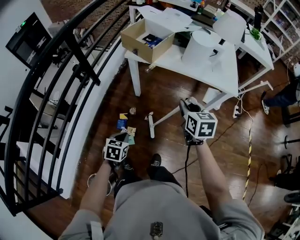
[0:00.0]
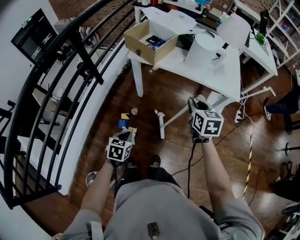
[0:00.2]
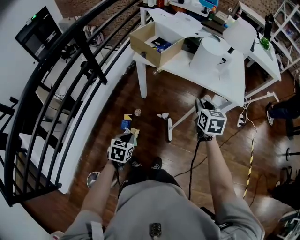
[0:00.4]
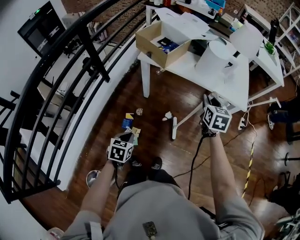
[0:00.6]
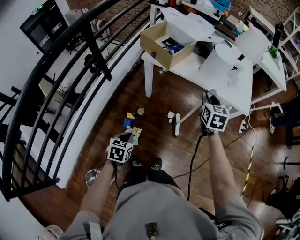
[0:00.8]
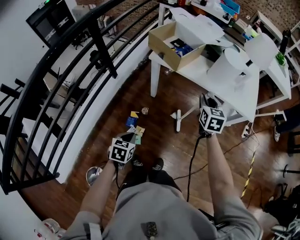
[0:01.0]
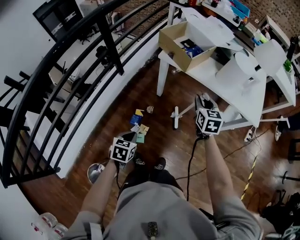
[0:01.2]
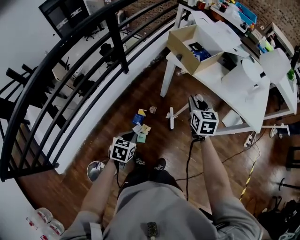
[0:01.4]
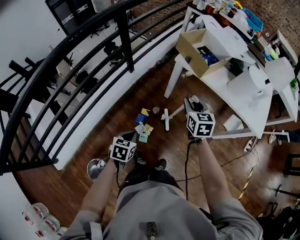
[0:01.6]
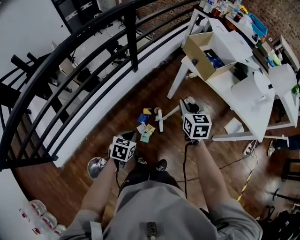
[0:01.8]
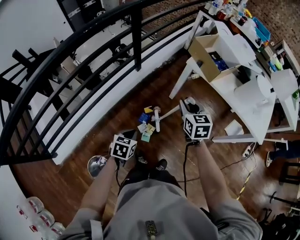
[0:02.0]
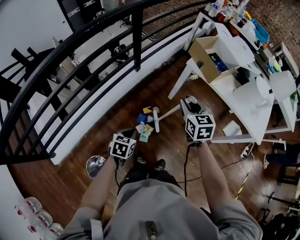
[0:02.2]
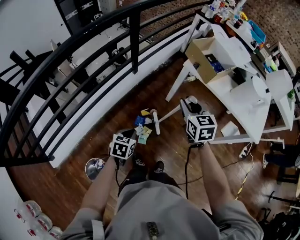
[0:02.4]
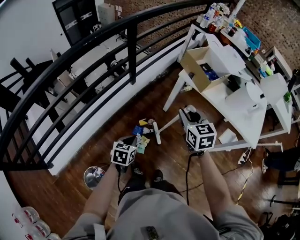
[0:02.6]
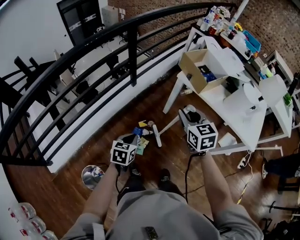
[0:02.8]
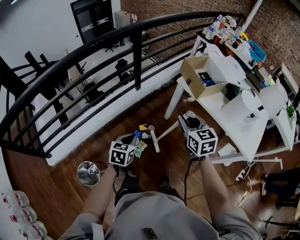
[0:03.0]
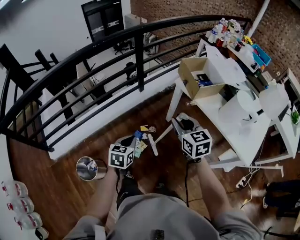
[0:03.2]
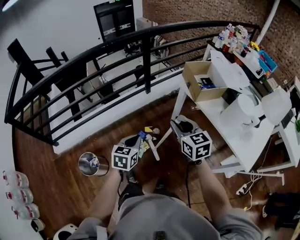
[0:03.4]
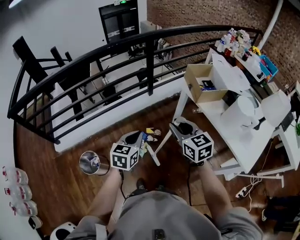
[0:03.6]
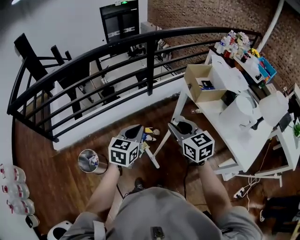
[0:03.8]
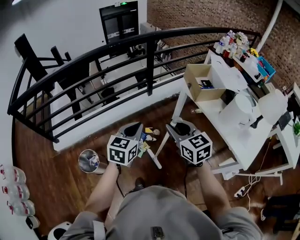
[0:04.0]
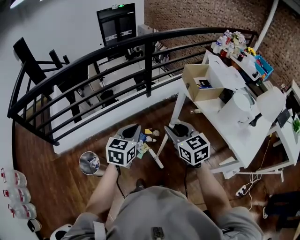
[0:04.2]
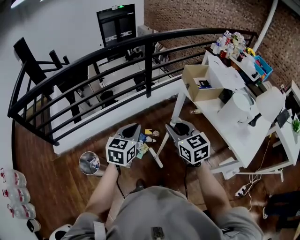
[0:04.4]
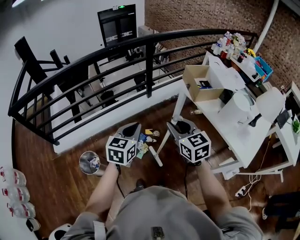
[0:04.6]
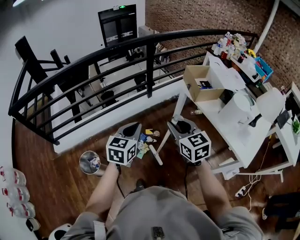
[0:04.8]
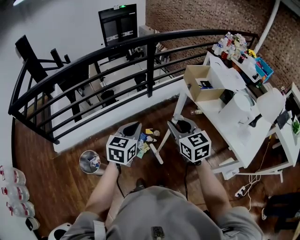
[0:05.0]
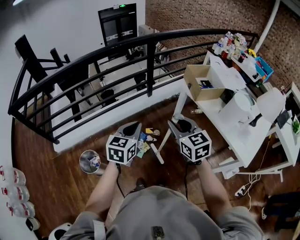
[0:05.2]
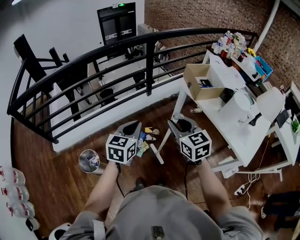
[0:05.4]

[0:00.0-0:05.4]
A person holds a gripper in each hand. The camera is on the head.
0:00.0 to 0:01.4: The right gripper heads to the left and forward, covering about 15 cm. Meanwhile the left gripper moves to the left, approximately 10 cm.
0:01.4 to 0:02.8: The right gripper heads to the left and upward, covering approximately 15 cm, and rotates approximately 20 degrees. The left gripper is displaced upward by roughly 5 cm.
0:02.8 to 0:04.0: The right gripper moves some 15 cm, and changes its angle by about 30 degrees. Meanwhile the left gripper shifts roughly 20 cm upward, and turns by approximately 30 degrees.
0:04.0 to 0:05.4: There are only small adjustments of the grippers.

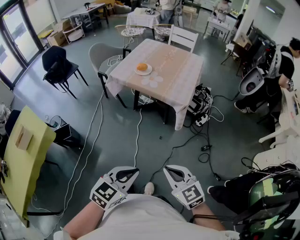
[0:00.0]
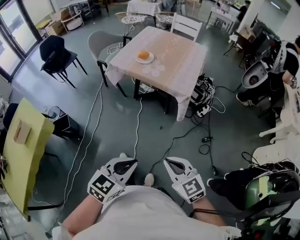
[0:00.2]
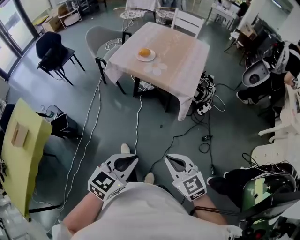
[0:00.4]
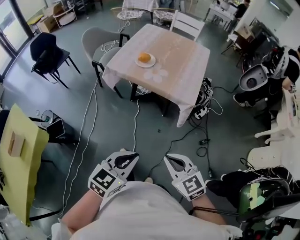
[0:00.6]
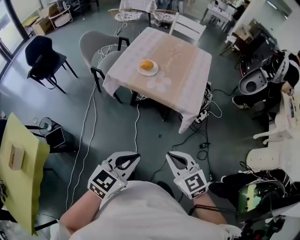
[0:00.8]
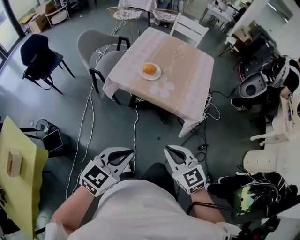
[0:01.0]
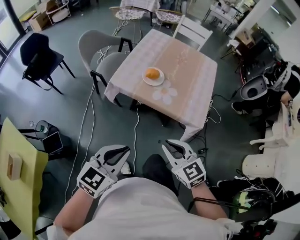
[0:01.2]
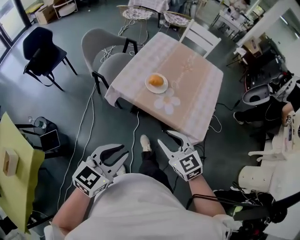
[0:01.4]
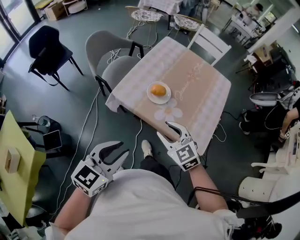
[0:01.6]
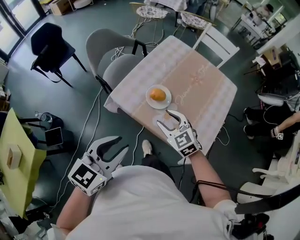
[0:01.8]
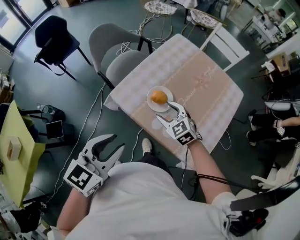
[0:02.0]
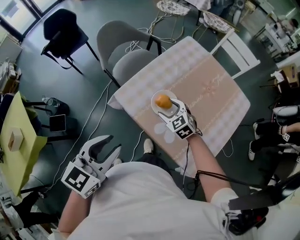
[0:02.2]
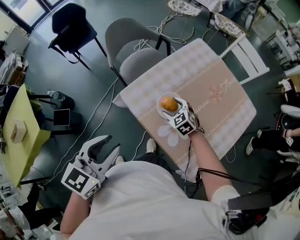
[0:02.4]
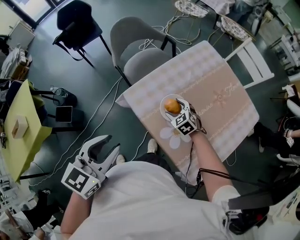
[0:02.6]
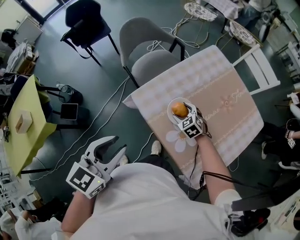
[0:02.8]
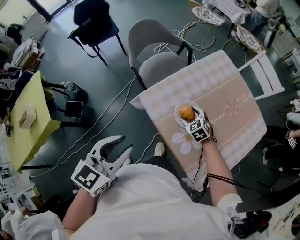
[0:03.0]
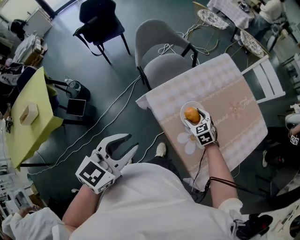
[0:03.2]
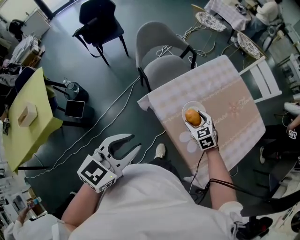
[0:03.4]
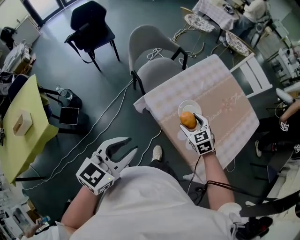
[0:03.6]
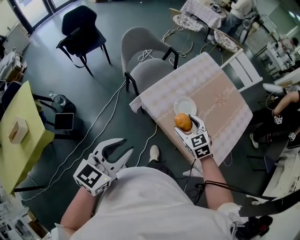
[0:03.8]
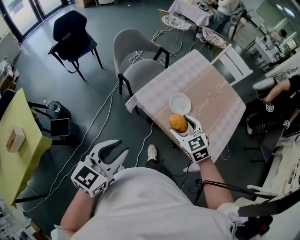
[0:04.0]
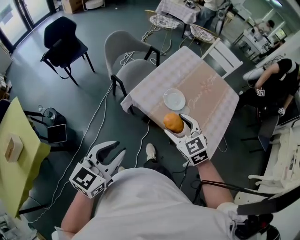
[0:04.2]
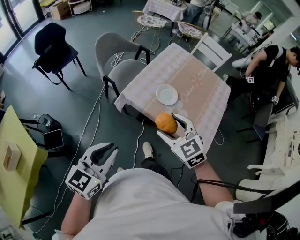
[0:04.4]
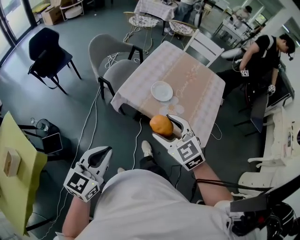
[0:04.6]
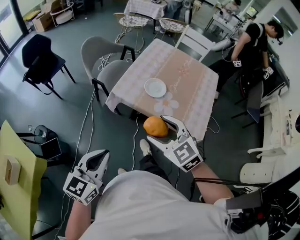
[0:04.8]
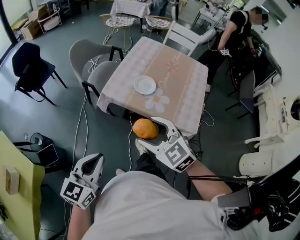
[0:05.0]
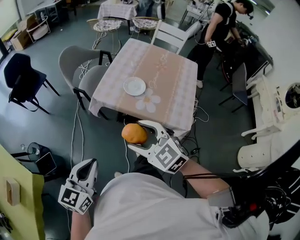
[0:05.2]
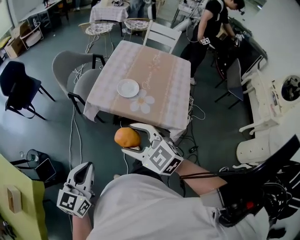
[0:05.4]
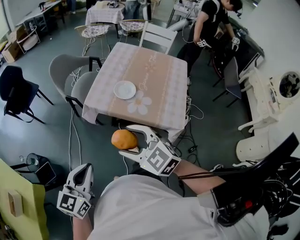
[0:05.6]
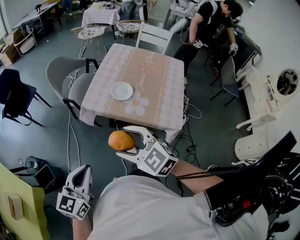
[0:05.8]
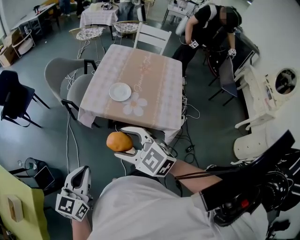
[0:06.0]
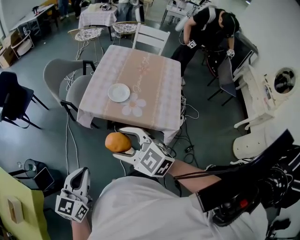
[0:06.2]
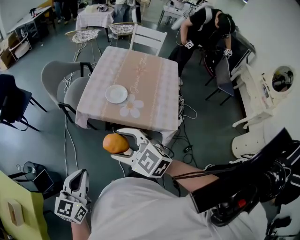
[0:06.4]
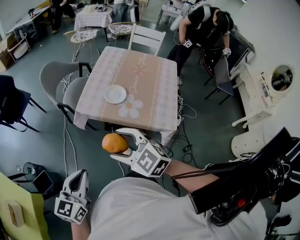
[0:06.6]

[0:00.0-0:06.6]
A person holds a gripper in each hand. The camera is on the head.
0:00.0 to 0:01.6: The pair of grippers is taken forward, about 50 cm. The left gripper opens up; the right gripper opens its fingers.
0:01.6 to 0:03.2: The left gripper moves forward, some 10 cm, and turns by approximately 30 degrees, while the right gripper shifts approximately 30 cm forward and downward, rotates approximately 20 degrees, and opens up.
0:03.2 to 0:05.0: The right gripper shifts approximately 40 cm backward and upward, and rotates some 20 degrees. Meanwhile the left gripper heads backward and to the left, covering roughly 20 cm, swivels some 20 degrees, and closes its fingers.
0:05.0 to 0:06.6: The grippers stay close to where they were, moving slightly.

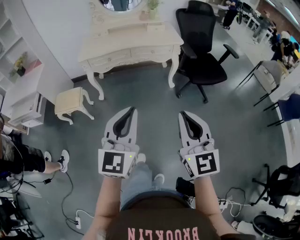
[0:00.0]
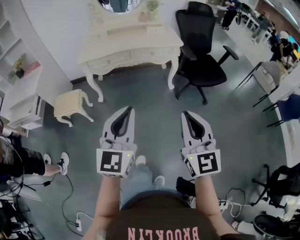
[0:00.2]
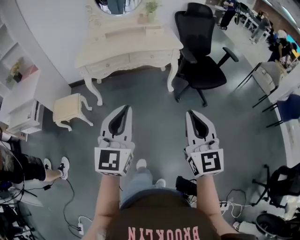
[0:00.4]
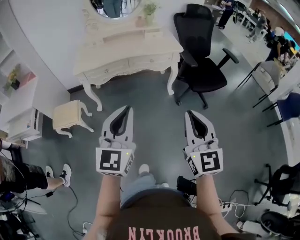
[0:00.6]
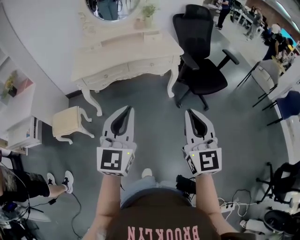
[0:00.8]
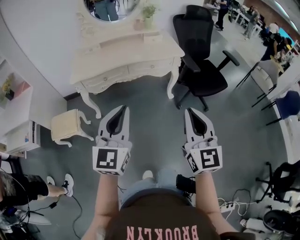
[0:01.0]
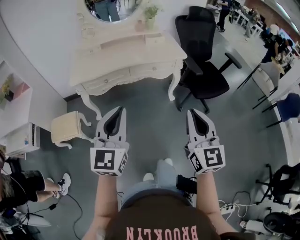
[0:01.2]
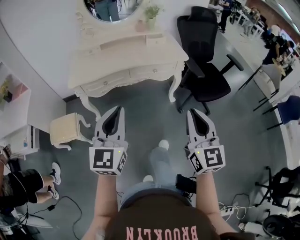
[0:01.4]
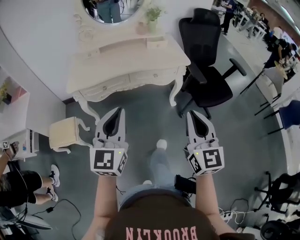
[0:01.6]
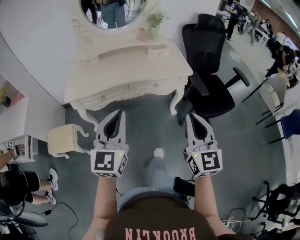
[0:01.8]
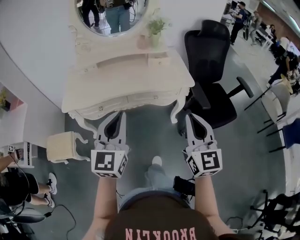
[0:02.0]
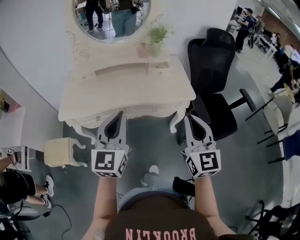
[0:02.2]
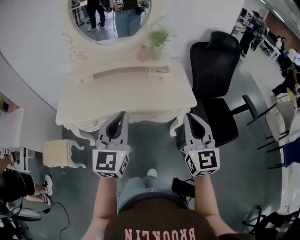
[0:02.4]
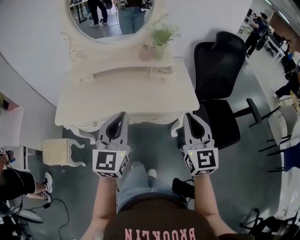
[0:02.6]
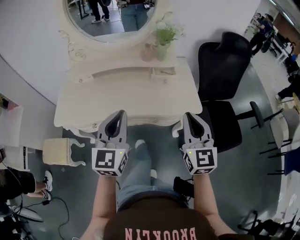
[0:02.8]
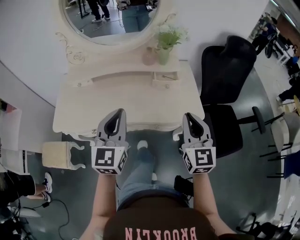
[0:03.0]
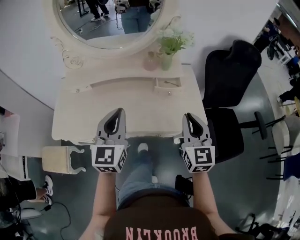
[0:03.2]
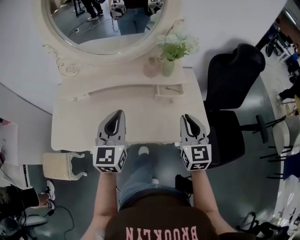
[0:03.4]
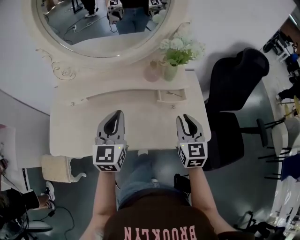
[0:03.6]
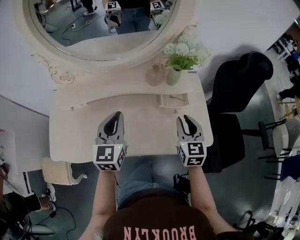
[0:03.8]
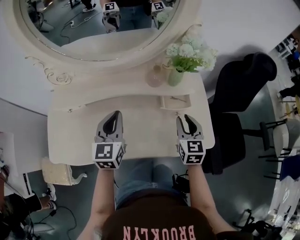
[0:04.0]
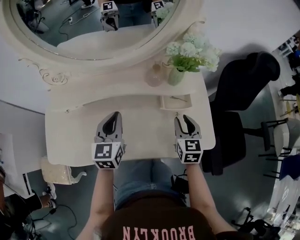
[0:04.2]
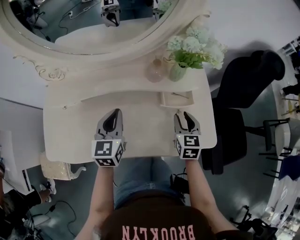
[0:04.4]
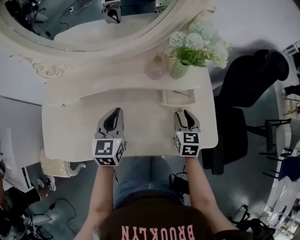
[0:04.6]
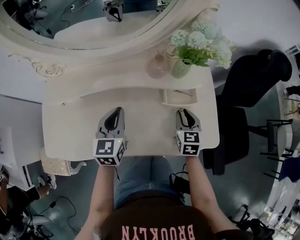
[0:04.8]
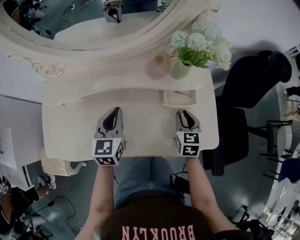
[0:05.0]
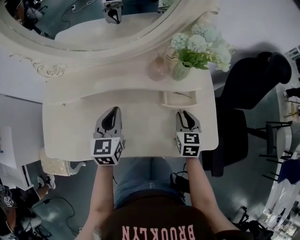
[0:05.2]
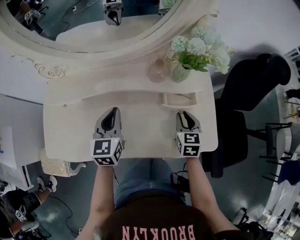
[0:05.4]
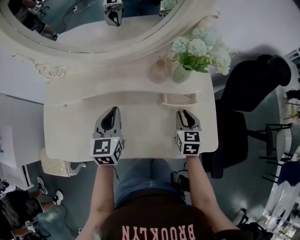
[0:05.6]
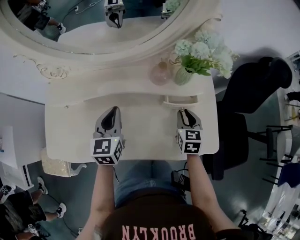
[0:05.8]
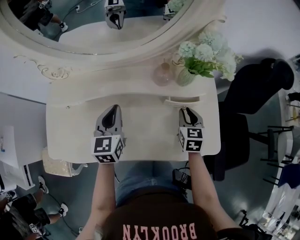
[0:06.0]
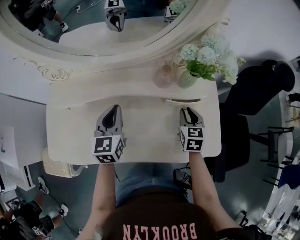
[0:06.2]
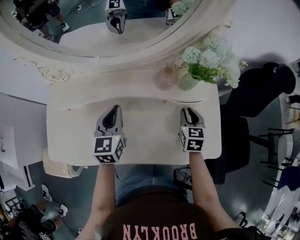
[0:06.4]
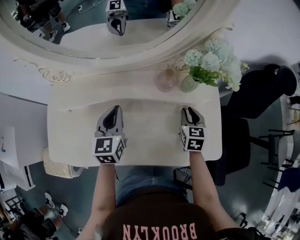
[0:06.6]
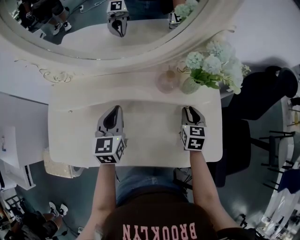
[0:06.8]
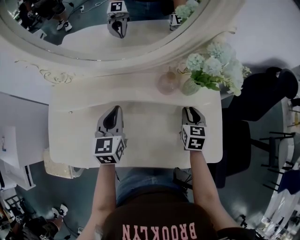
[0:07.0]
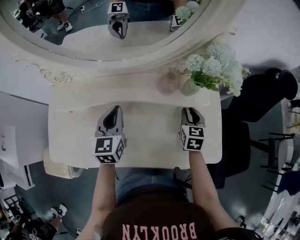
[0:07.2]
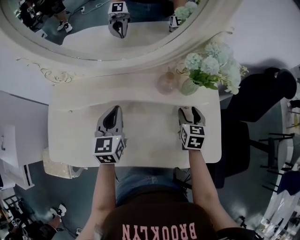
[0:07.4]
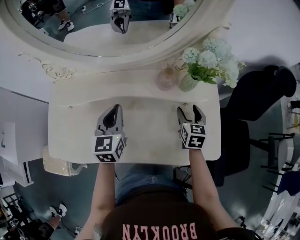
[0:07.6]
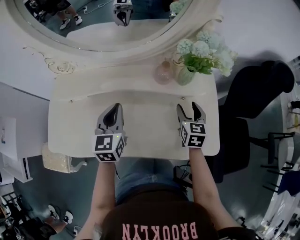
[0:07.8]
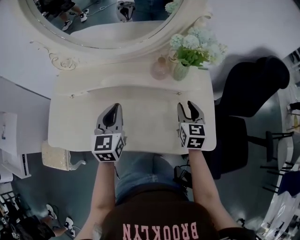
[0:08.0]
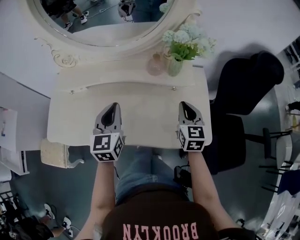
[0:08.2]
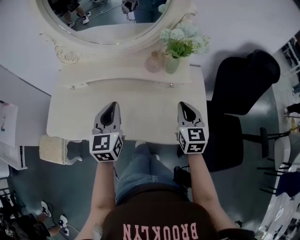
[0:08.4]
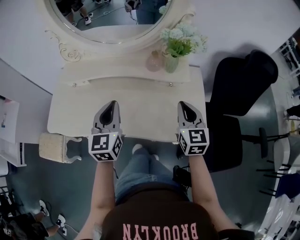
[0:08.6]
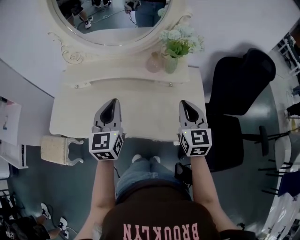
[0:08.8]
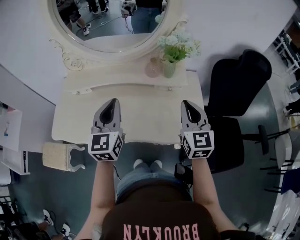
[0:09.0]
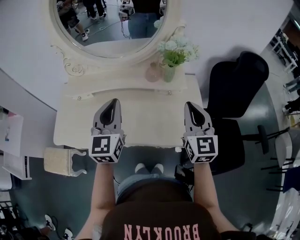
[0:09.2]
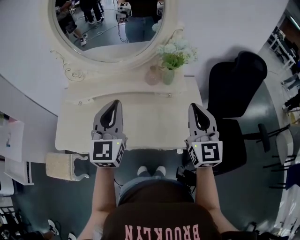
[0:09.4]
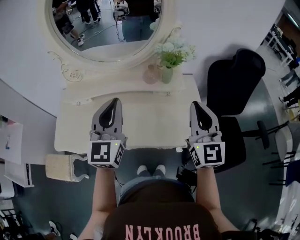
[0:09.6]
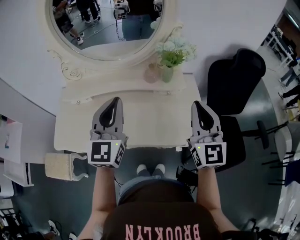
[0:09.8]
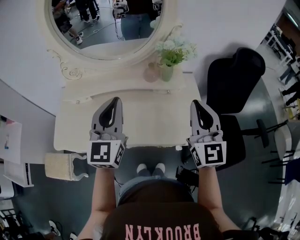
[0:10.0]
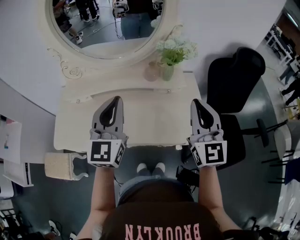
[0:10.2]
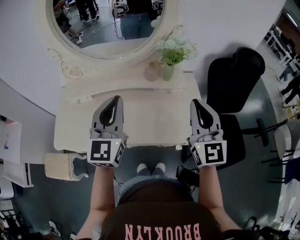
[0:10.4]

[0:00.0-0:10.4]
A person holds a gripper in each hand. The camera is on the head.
0:00.0 to 0:01.4: The right gripper travels forward by approximately 25 cm. The left gripper goes roughly 30 cm forward and to the left.
0:01.4 to 0:03.0: The pair of grippers is taken forward, approximately 50 cm.
0:03.0 to 0:04.4: The two grippers go approximately 30 cm forward and downward. The right gripper rotates approximately 30 degrees, and opens its fingers.
0:04.4 to 0:06.0: The right gripper ends up roughly 5 cm from where it was.
0:06.0 to 0:07.4: The right gripper opens.
0:07.4 to 0:09.0: The left gripper moves backward and upward, some 20 cm. The right gripper moves upward and backward, some 30 cm, turns by about 30 degrees, and closes up.
0:09.0 to 0:10.4: Both grippers move upward, some 10 cm.

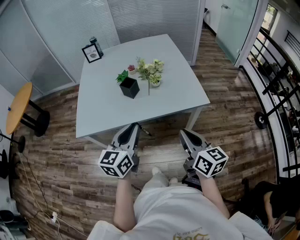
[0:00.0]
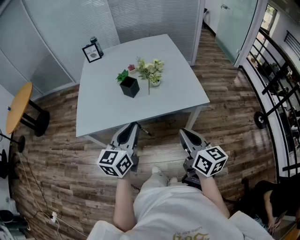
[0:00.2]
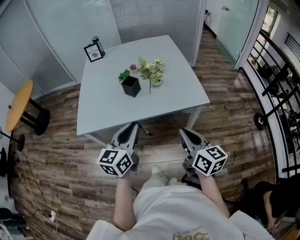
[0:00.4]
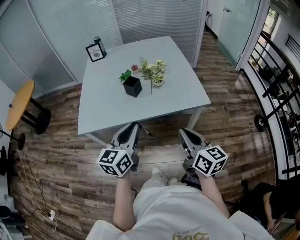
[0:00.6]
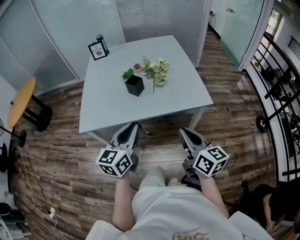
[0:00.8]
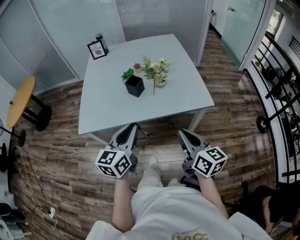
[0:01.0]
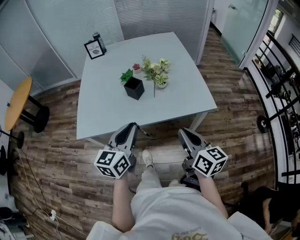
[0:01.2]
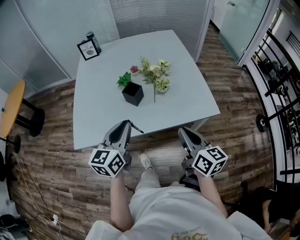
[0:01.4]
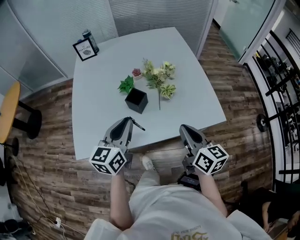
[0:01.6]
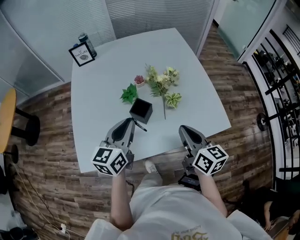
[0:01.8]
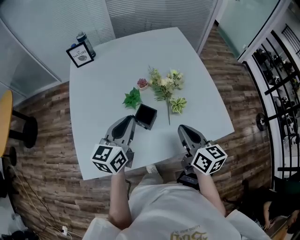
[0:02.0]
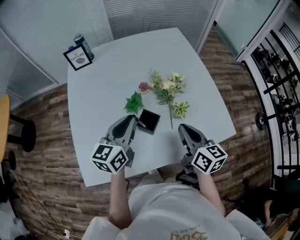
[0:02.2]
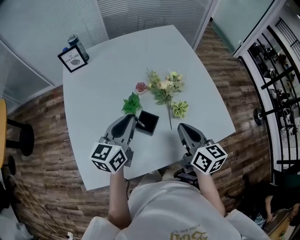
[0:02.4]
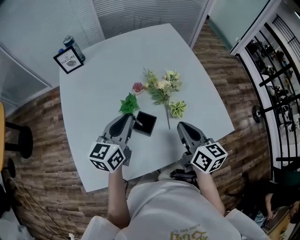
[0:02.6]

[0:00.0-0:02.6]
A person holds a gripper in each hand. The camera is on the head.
0:00.0 to 0:01.2: The right gripper is displaced forward by roughly 5 cm. The left gripper changes place by roughly 5 cm.
0:01.2 to 0:02.6: The left gripper moves forward, roughly 35 cm. Meanwhile the right gripper travels forward and to the left by some 35 cm.
